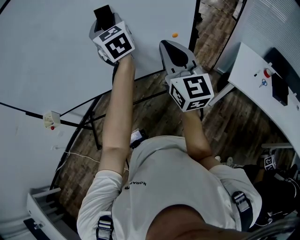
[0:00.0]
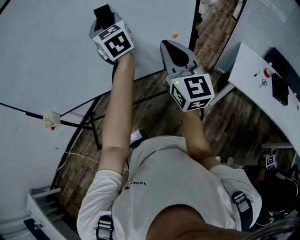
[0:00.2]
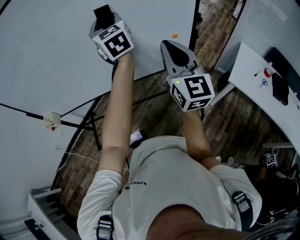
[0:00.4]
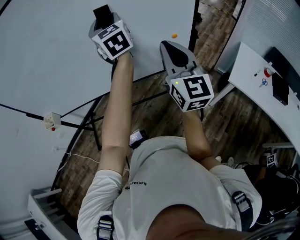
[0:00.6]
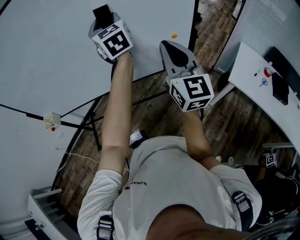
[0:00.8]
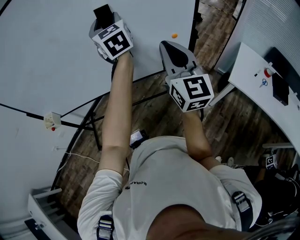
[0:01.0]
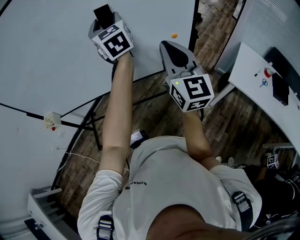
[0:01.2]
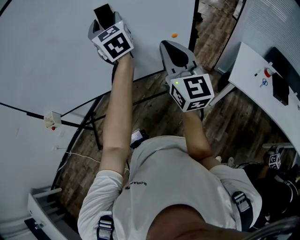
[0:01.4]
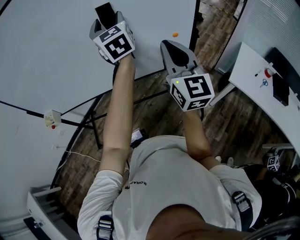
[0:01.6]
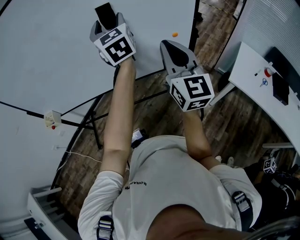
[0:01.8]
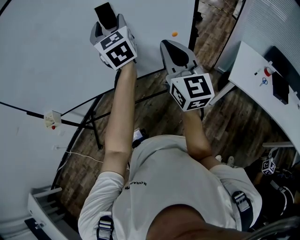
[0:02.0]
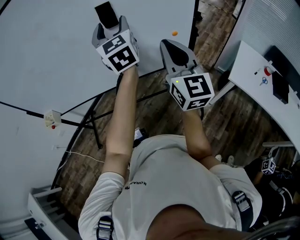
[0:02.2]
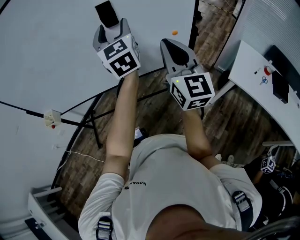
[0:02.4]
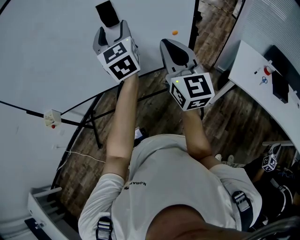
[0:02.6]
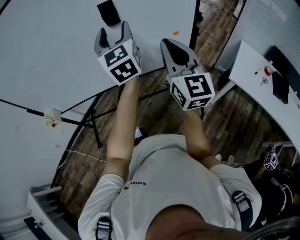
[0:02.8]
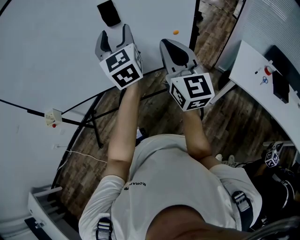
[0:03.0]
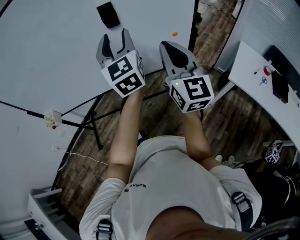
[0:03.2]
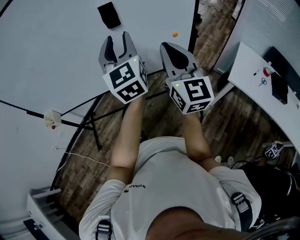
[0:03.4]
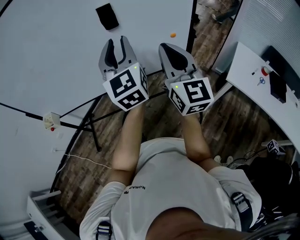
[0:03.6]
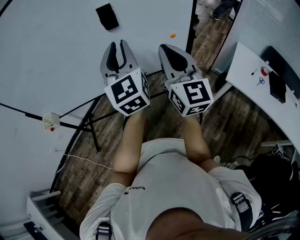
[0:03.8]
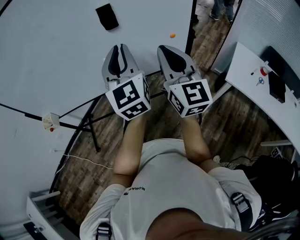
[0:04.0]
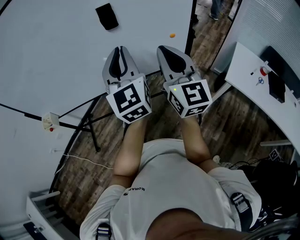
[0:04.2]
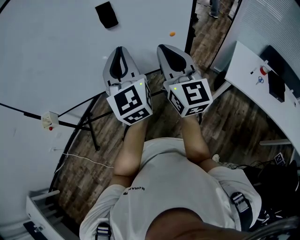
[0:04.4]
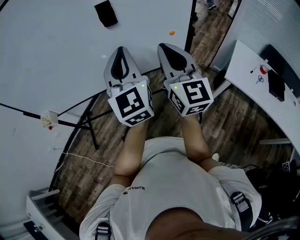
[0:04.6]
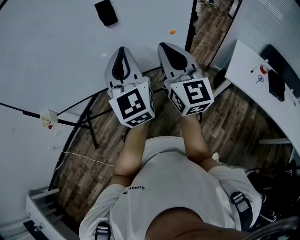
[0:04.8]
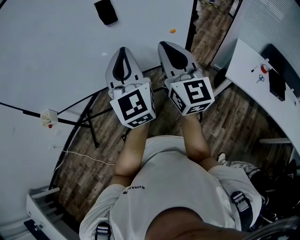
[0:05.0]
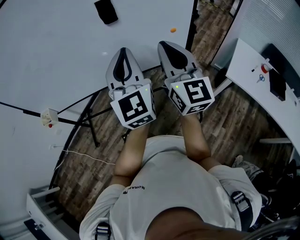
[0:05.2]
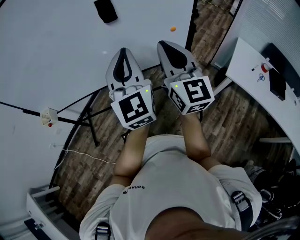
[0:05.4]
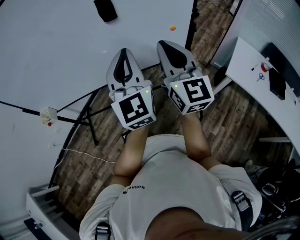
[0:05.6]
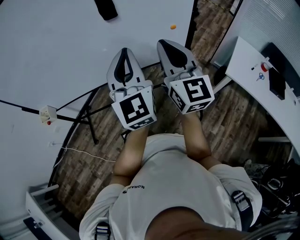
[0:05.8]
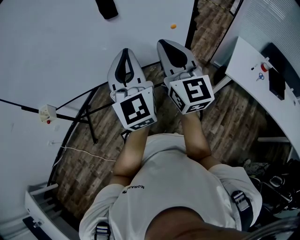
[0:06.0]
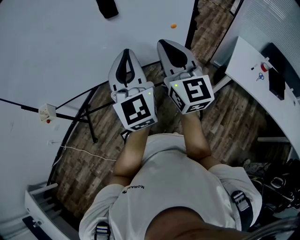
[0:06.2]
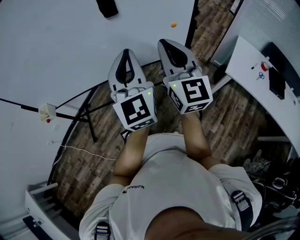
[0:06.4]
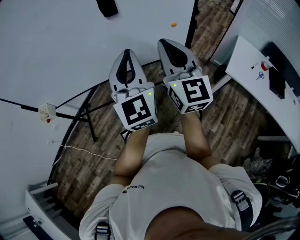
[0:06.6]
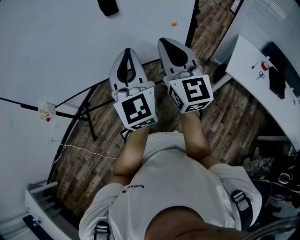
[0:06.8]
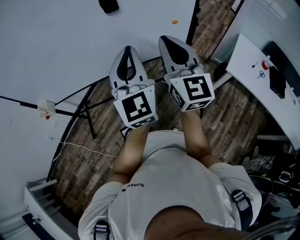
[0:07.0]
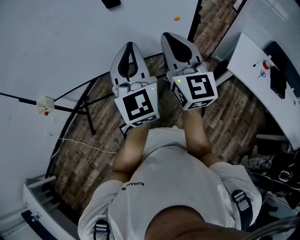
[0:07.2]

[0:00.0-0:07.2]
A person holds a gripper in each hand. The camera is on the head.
0:00.0 to 0:01.4: The grippers make only small movements.
0:01.4 to 0:02.8: The left gripper heads backward, covering approximately 5 cm.
0:02.8 to 0:04.4: The left gripper moves backward, roughly 10 cm, and closes up.
0:04.4 to 0:07.2: The grippers stay close to where they were, moving slightly.

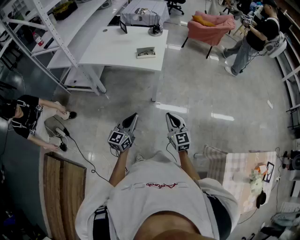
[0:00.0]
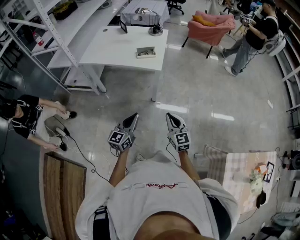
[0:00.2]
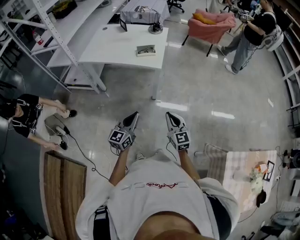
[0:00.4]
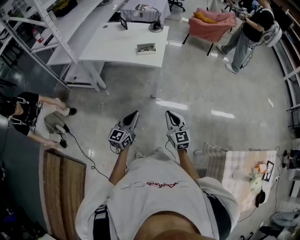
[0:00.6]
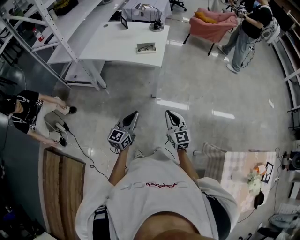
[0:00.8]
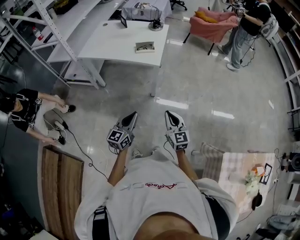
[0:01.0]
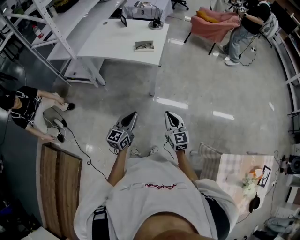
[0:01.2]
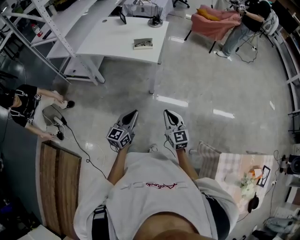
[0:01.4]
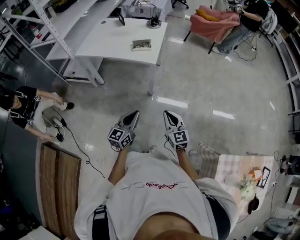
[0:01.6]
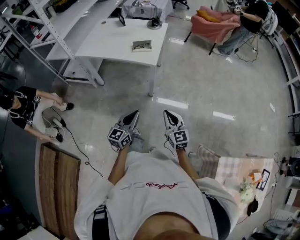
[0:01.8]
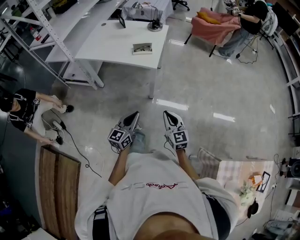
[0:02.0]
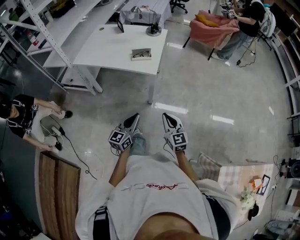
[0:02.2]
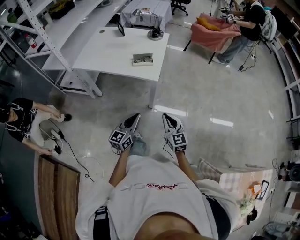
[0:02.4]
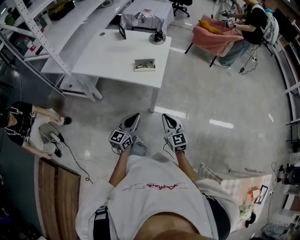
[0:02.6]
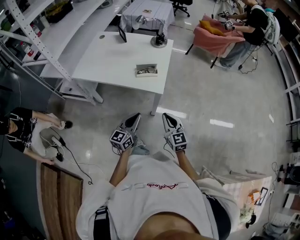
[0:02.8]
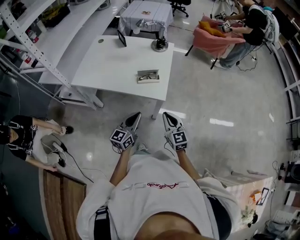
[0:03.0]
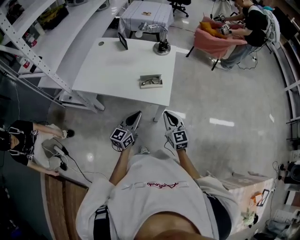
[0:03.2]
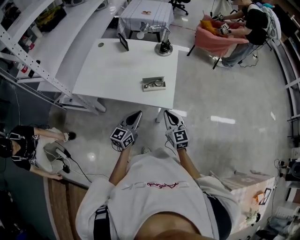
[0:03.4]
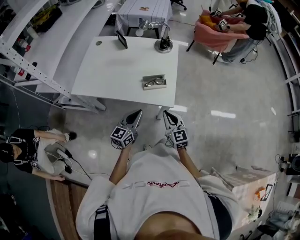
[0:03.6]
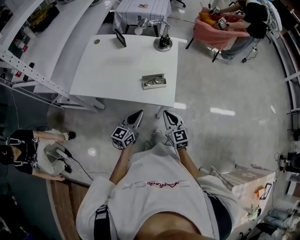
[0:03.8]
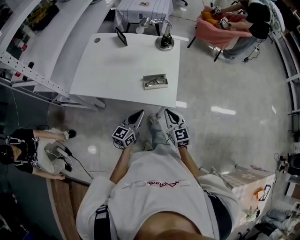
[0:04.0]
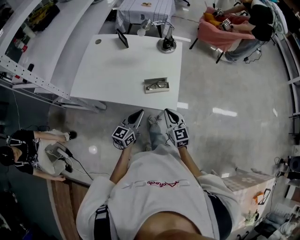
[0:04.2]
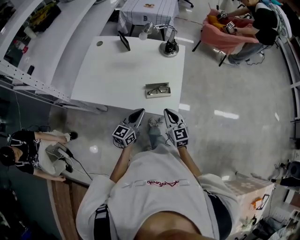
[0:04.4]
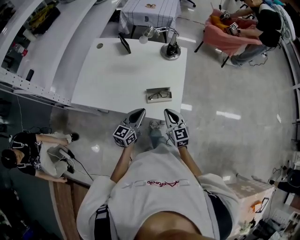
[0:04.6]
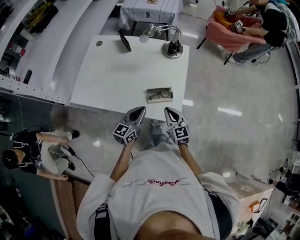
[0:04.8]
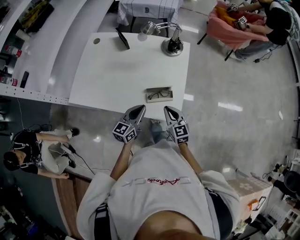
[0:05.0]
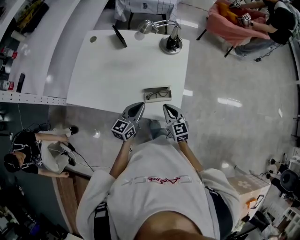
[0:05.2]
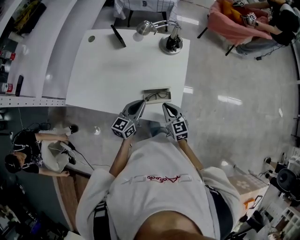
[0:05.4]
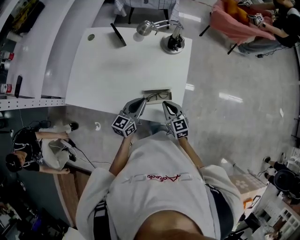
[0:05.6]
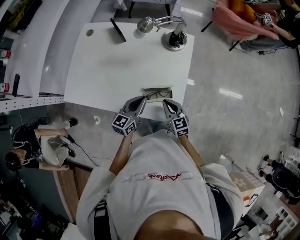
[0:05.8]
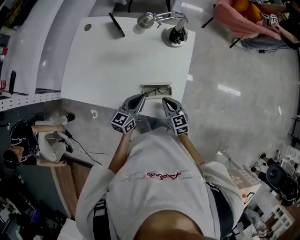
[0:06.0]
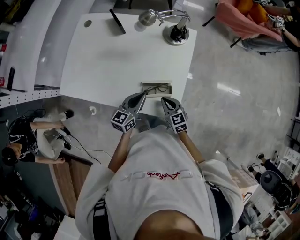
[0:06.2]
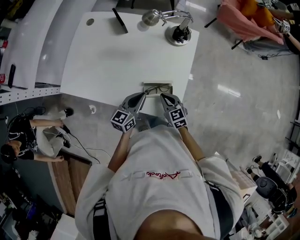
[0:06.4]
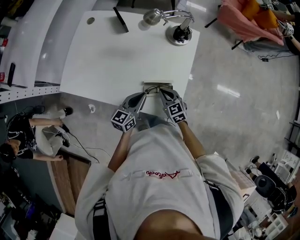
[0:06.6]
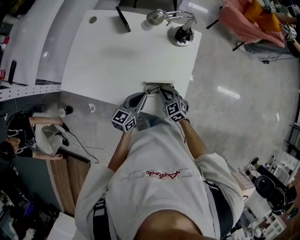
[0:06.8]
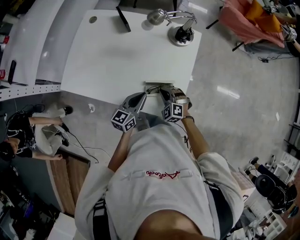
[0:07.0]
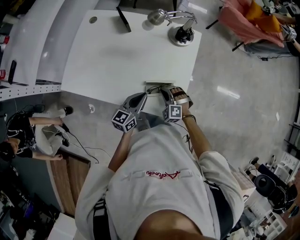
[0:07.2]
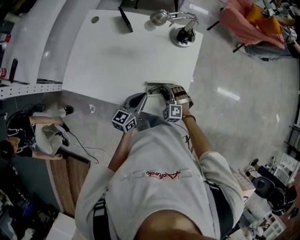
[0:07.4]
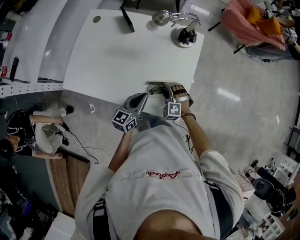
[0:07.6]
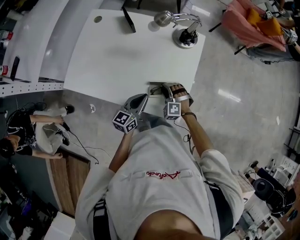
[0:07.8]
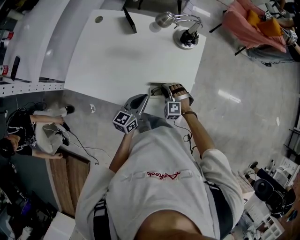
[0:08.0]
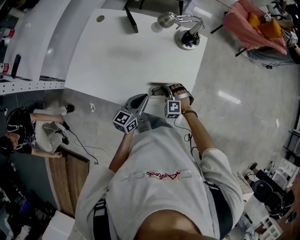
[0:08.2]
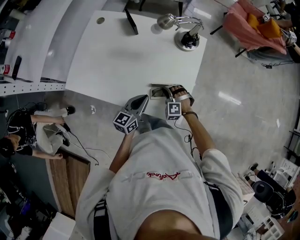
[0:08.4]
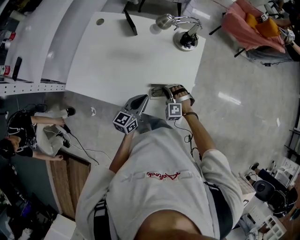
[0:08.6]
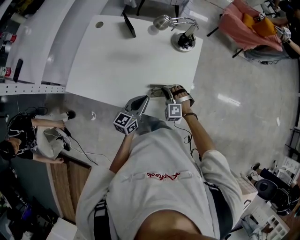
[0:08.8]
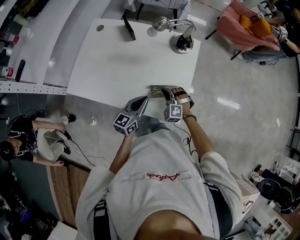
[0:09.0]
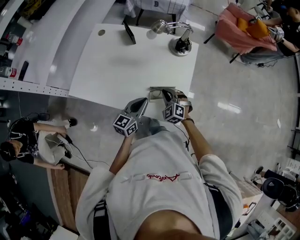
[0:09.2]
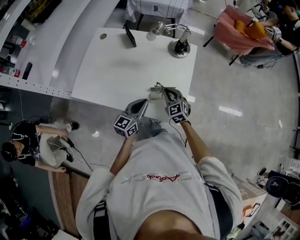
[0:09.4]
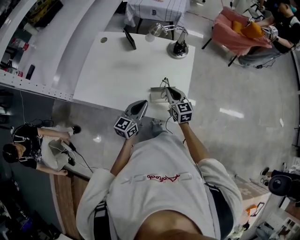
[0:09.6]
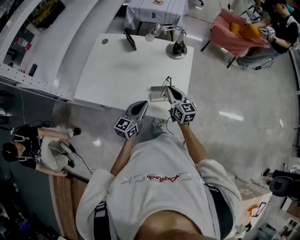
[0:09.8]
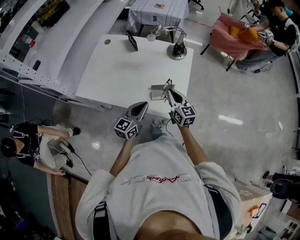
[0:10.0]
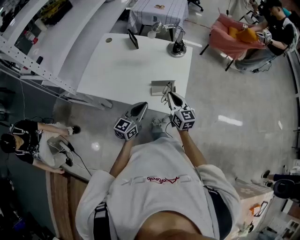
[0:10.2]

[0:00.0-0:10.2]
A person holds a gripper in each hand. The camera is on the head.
0:00.0 to 0:01.4: The left gripper heads to the right, covering about 5 cm.
0:01.4 to 0:03.0: Both grippers travel together forward, about 25 cm.
0:03.0 to 0:04.4: The right gripper heads forward and to the left, covering approximately 15 cm, while the left gripper heads forward, covering roughly 15 cm.
0:04.4 to 0:05.8: The right gripper shifts about 15 cm forward and downward. The left gripper is displaced forward by some 15 cm.
0:05.8 to 0:07.2: The right gripper goes roughly 5 cm downward, and twists roughly 60 degrees counterclockwise, seen from behind.
0:07.2 to 0:08.8: The right gripper opens, then closes again.
0:08.8 to 0:10.2: The left gripper moves backward and upward, approximately 10 cm. The right gripper goes approximately 20 cm upward and backward, and rolls clockwise, seen from behind, by some 80 degrees.

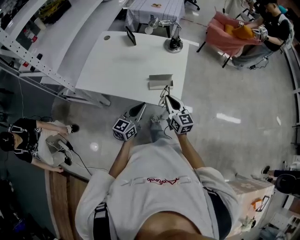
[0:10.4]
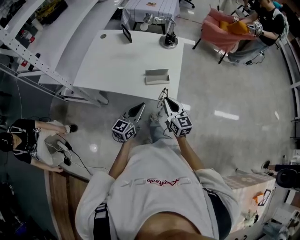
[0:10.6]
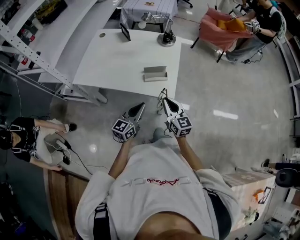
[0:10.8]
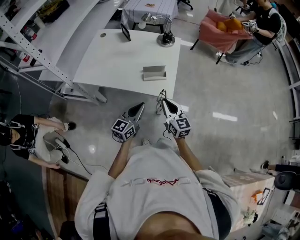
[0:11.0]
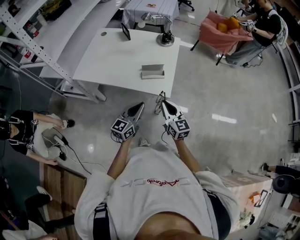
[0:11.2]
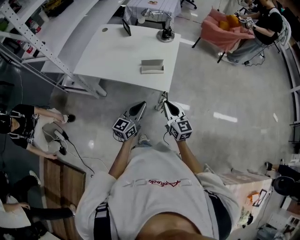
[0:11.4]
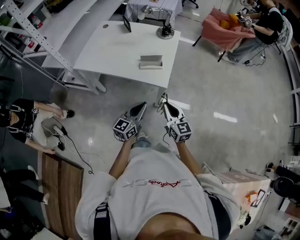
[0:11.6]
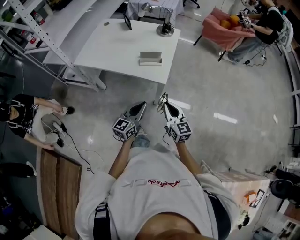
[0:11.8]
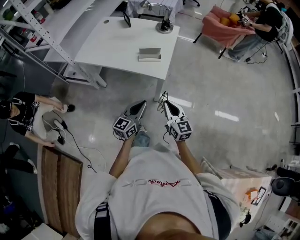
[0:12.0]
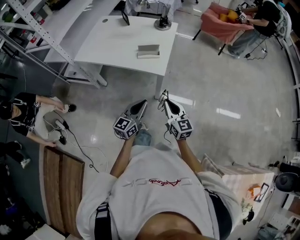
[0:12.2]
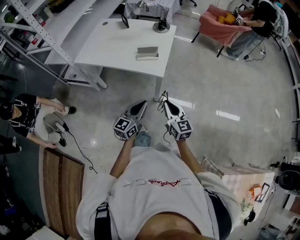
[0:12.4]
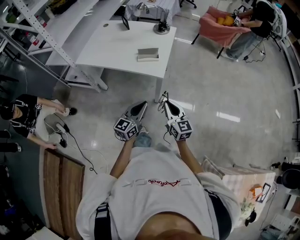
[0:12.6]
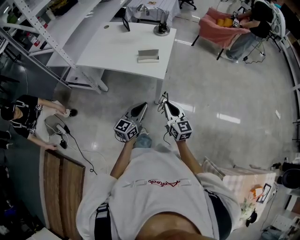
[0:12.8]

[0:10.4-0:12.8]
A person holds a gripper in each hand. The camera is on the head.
0:10.4 to 0:11.6: Both grippers travel together backward and to the right, roughly 20 cm.
0:11.6 to 0:12.8: Both grippers move backward, roughly 10 cm.

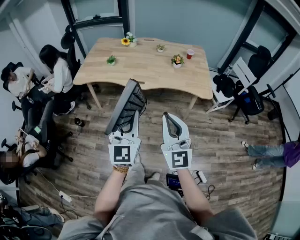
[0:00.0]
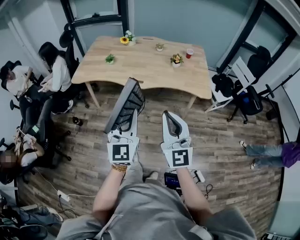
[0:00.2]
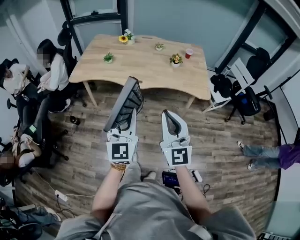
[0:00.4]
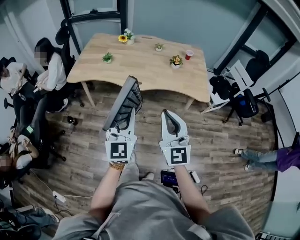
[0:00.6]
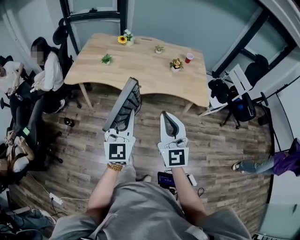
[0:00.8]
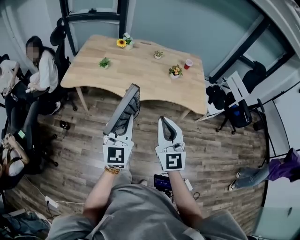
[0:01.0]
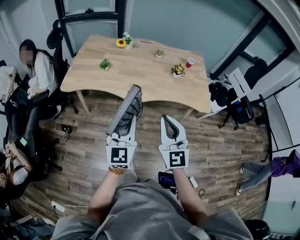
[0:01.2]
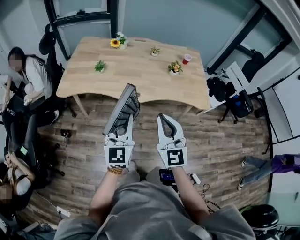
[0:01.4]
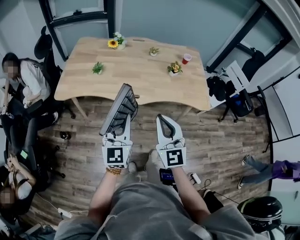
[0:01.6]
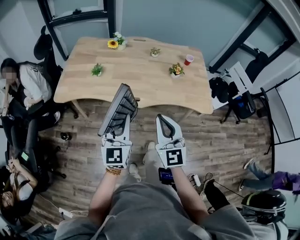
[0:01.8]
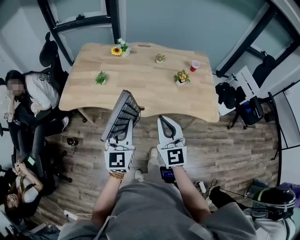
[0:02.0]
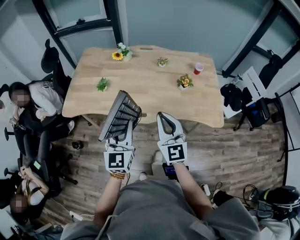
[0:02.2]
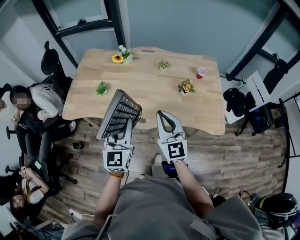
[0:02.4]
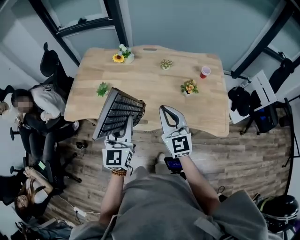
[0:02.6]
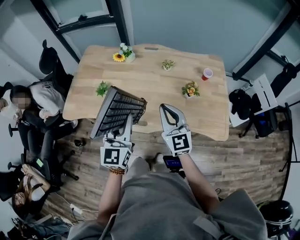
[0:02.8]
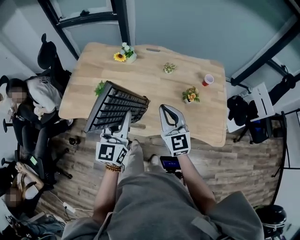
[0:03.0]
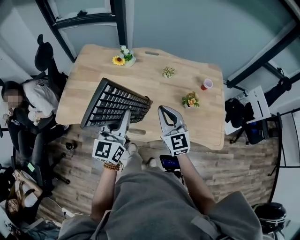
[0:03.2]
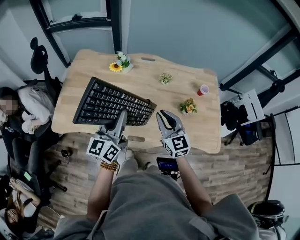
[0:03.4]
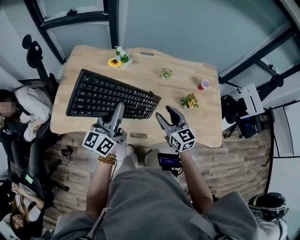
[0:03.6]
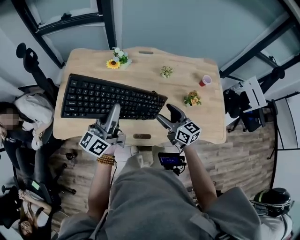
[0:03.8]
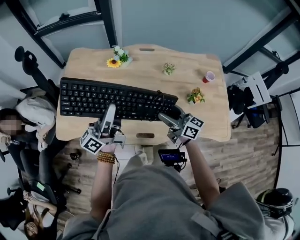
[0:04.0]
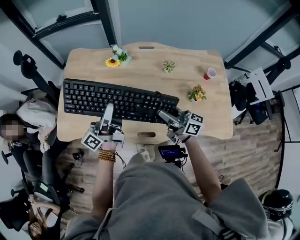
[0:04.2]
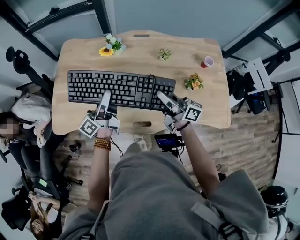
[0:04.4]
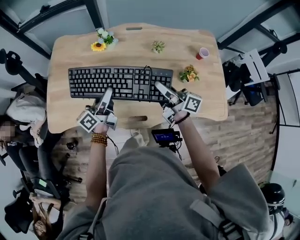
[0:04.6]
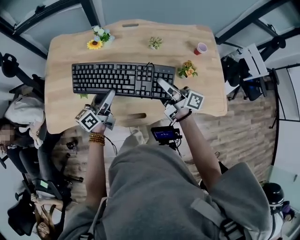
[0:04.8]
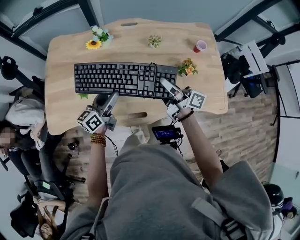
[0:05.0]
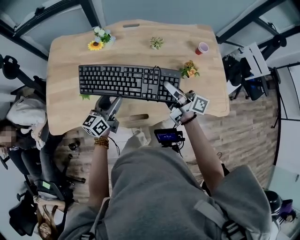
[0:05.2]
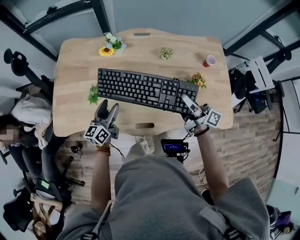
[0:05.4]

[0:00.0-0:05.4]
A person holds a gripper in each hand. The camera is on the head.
0:00.0 to 0:01.4: The left gripper heads forward and to the left, covering some 20 cm. Meanwhile the right gripper is displaced forward by approximately 20 cm.
0:01.4 to 0:02.8: Both grippers move forward, about 30 cm.
0:02.8 to 0:04.0: The left gripper moves forward and to the left, approximately 20 cm, and rolls counterclockwise, seen from behind, by about 60 degrees. The right gripper goes about 15 cm forward and downward, twists some 50 degrees clockwise, seen from behind, and opens its fingers.
0:04.0 to 0:05.4: The right gripper is displaced to the right by some 10 cm, rotates about 30 degrees, and closes its fingers. The left gripper goes roughly 20 cm downward, points its fingers approximately 30 degrees further downward, and opens.
